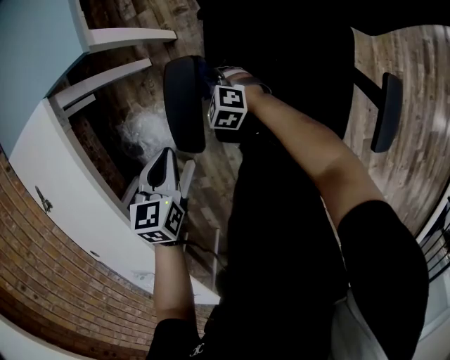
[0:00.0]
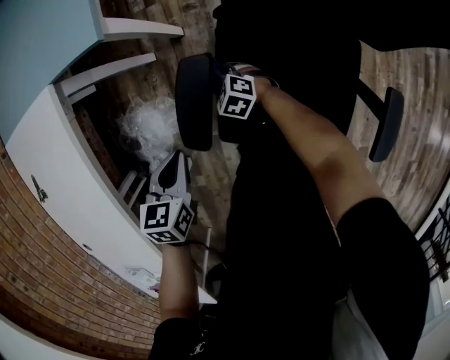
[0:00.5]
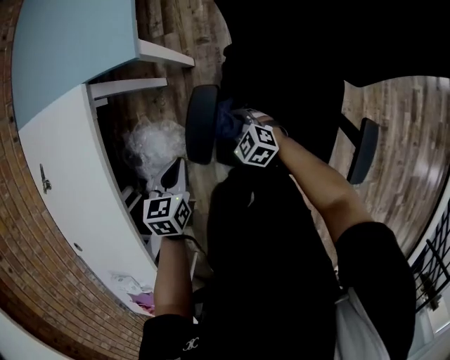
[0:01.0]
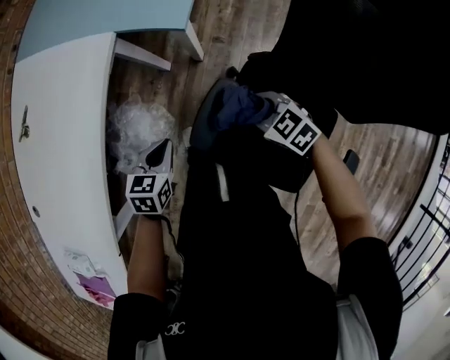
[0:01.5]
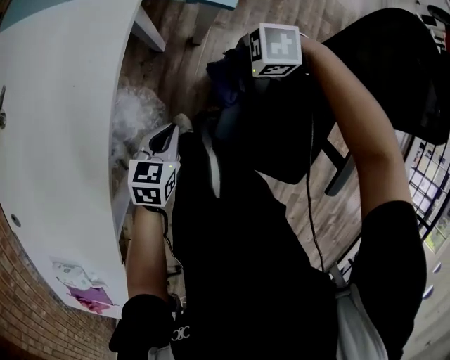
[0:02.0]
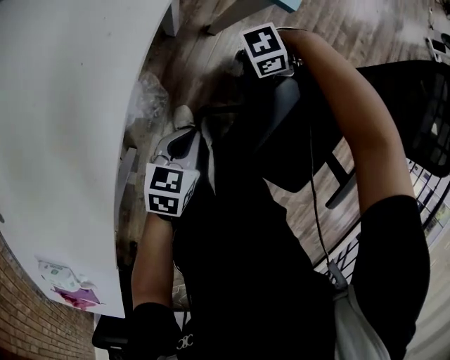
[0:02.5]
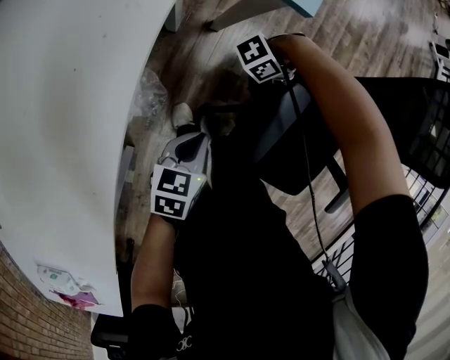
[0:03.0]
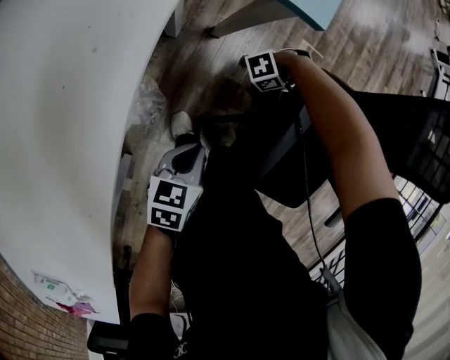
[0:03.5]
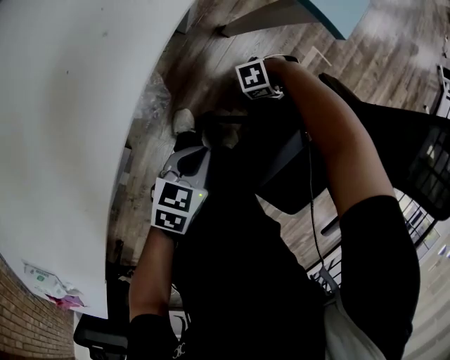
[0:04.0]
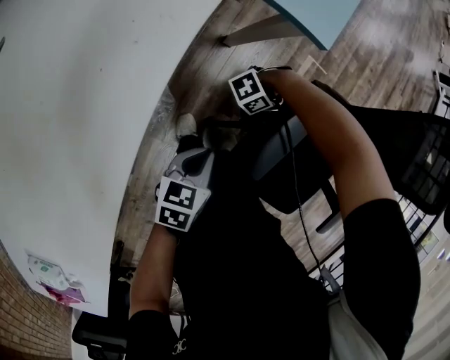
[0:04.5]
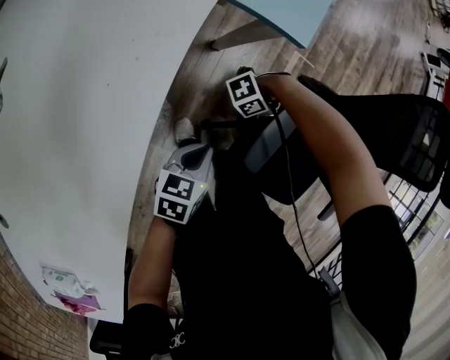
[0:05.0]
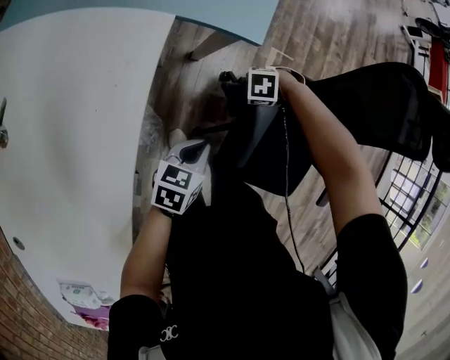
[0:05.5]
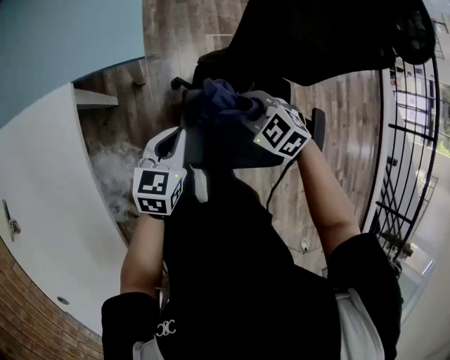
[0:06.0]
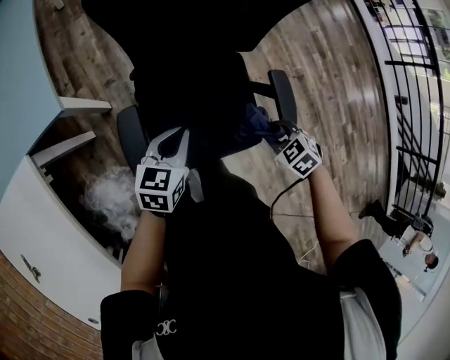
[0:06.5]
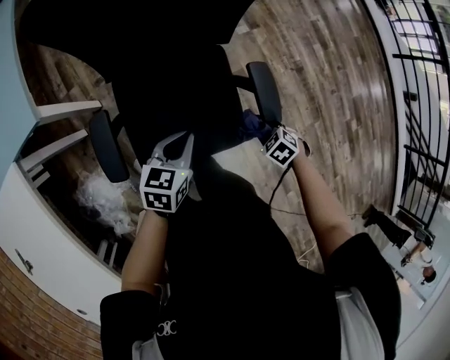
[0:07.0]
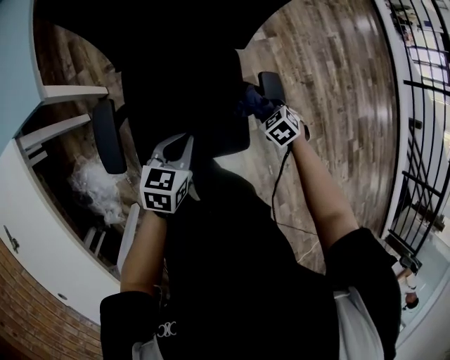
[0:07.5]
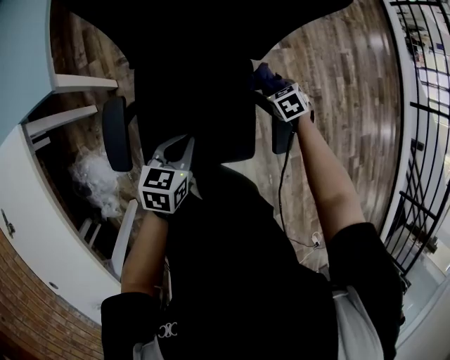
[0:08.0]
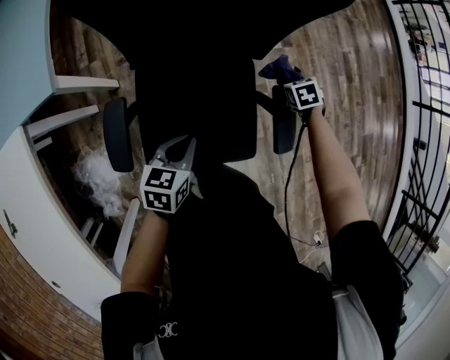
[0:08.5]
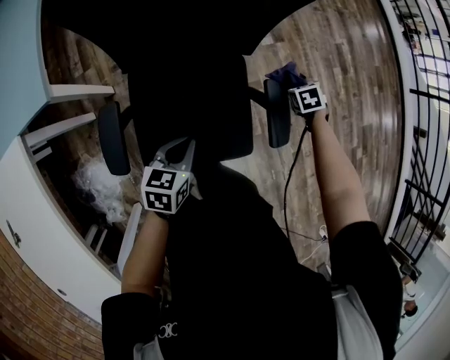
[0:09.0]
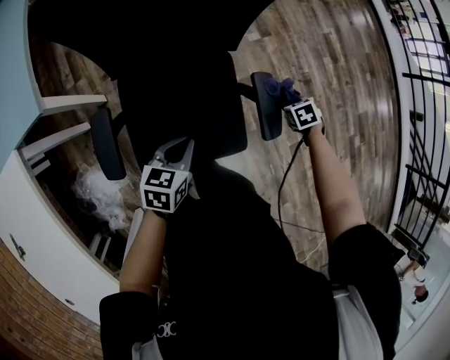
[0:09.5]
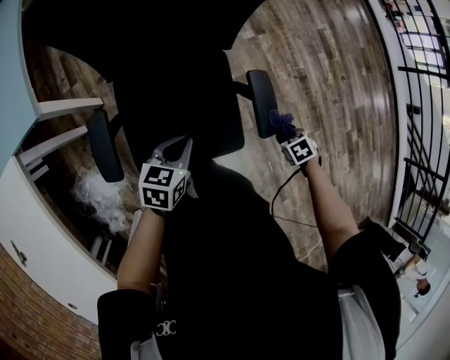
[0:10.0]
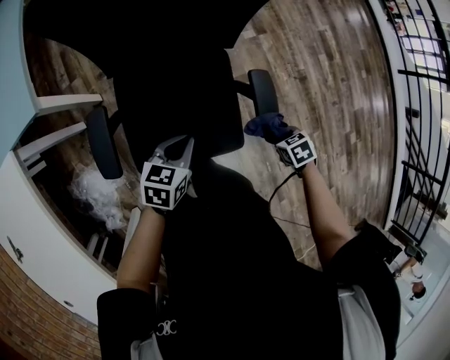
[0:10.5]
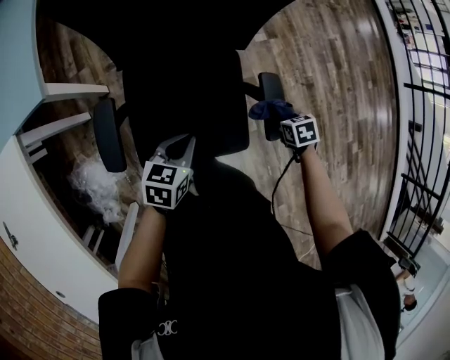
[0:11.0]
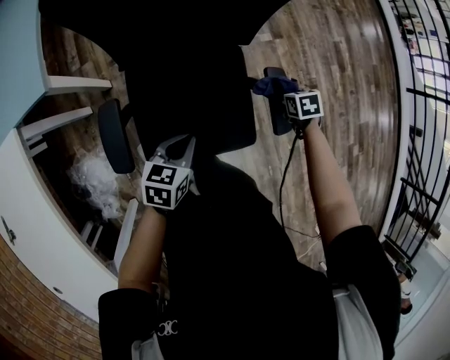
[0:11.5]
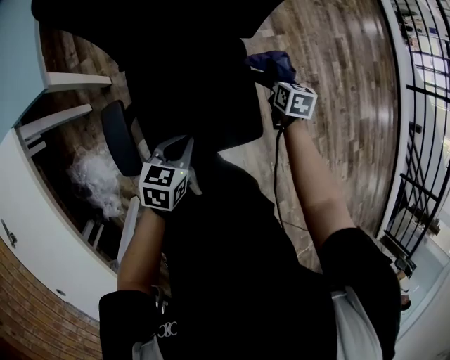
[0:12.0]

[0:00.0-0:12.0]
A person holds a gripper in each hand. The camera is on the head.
0:00.0 to 0:02.0: The left gripper moves roughly 15 cm; the right gripper moves upward, some 20 cm, and changes its angle by about 60 degrees.
0:02.0 to 0:04.0: The right gripper heads downward, covering about 30 cm, and rotates approximately 40 degrees; the left gripper travels downward by about 10 cm.
0:04.0 to 0:06.0: The left gripper shifts some 20 cm upward, and rotates about 30 degrees. The right gripper moves upward, some 40 cm, and turns by roughly 90 degrees.
0:06.0 to 0:08.0: The left gripper ends up about 30 cm from where it was. Meanwhile the right gripper moves approximately 50 cm, and changes its angle by about 40 degrees.
0:08.0 to 0:10.0: The right gripper ends up some 30 cm from where it was, and changes its angle by about 30 degrees.
0:10.0 to 0:12.0: The left gripper shifts by approximately 5 cm; the right gripper shifts by approximately 25 cm, and tips its fingers upward by some 30 degrees.

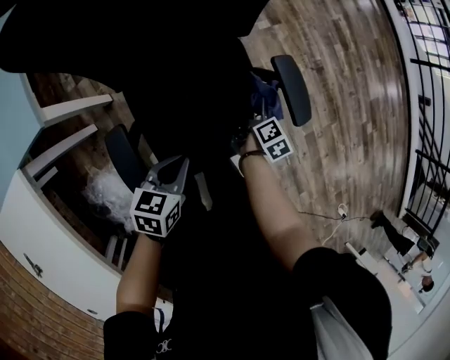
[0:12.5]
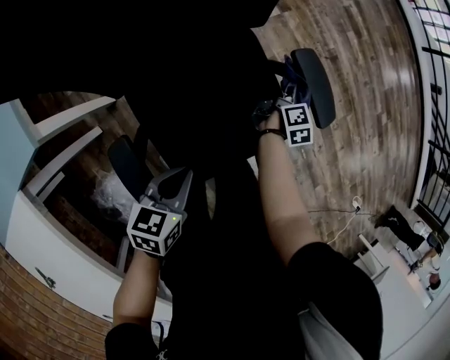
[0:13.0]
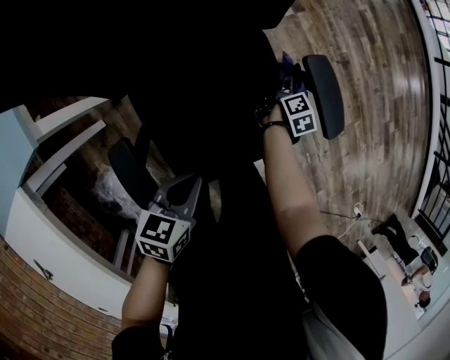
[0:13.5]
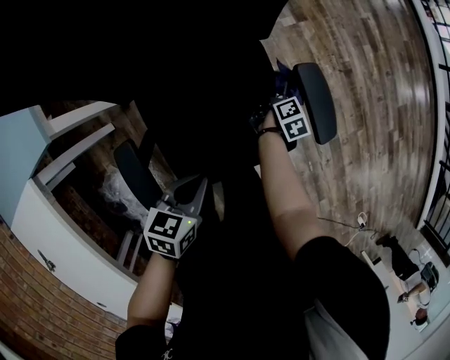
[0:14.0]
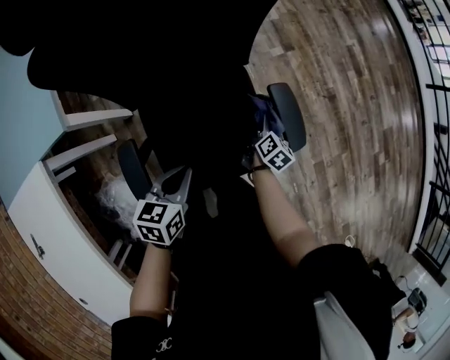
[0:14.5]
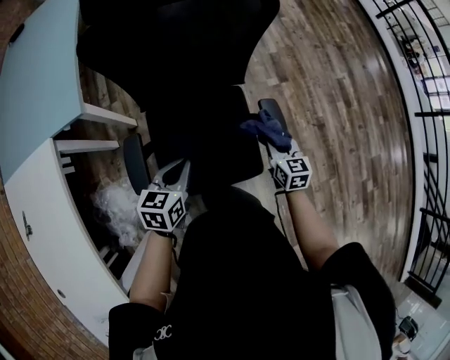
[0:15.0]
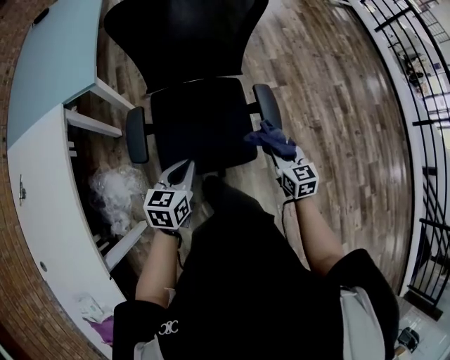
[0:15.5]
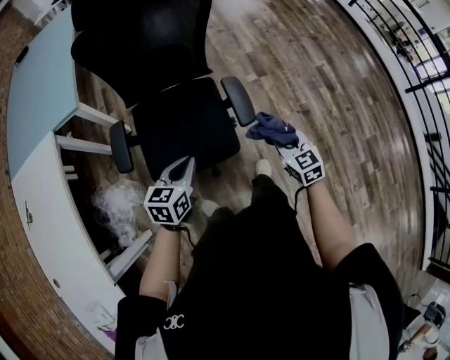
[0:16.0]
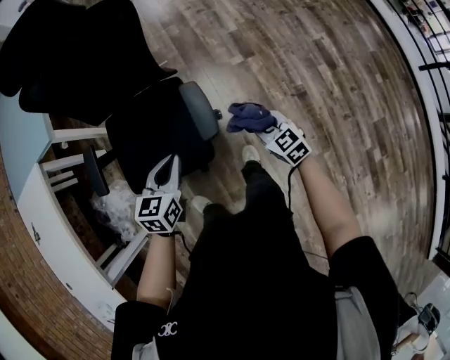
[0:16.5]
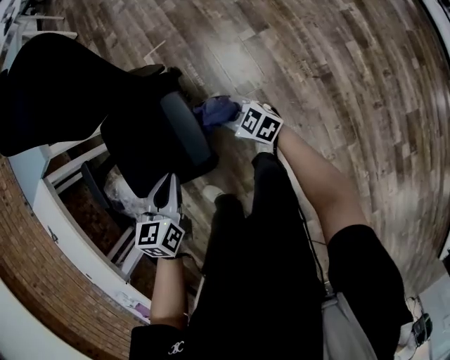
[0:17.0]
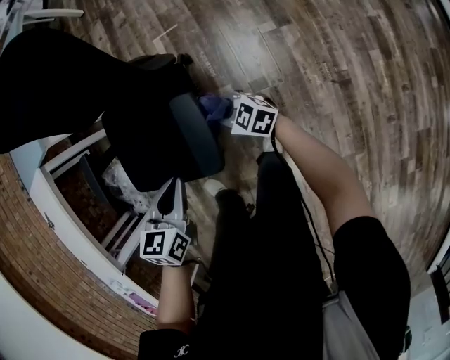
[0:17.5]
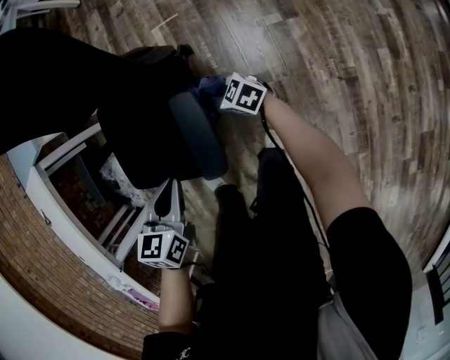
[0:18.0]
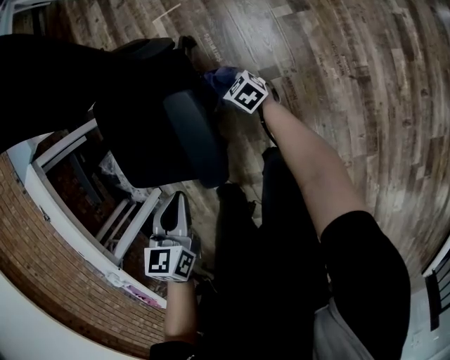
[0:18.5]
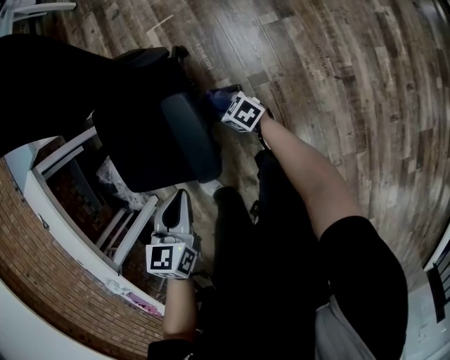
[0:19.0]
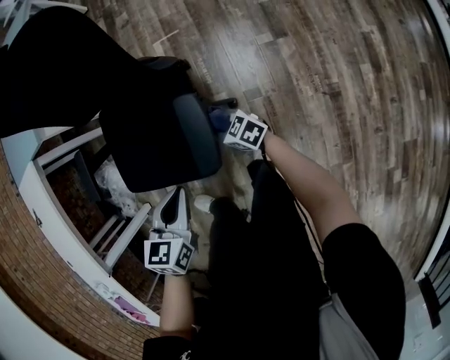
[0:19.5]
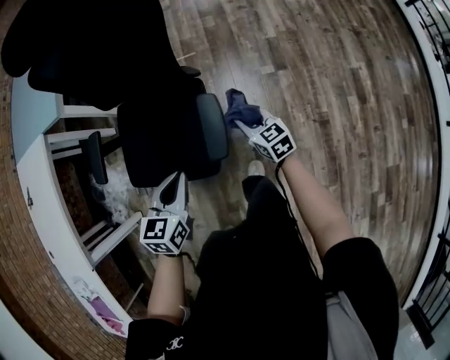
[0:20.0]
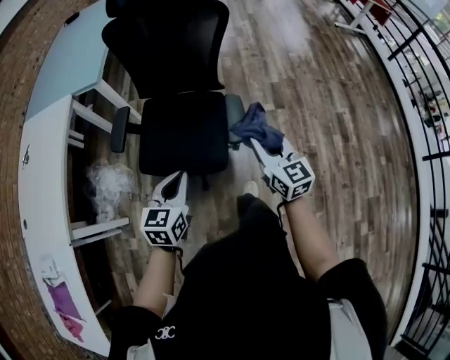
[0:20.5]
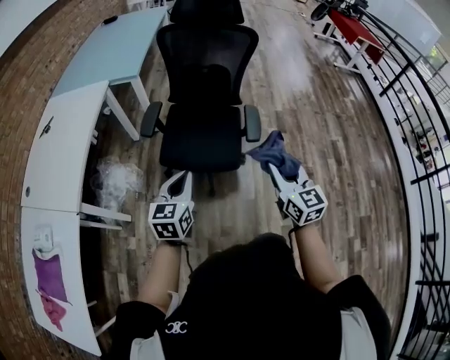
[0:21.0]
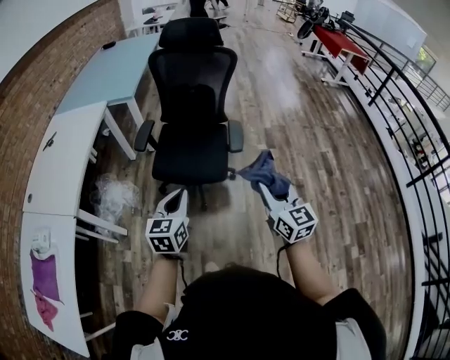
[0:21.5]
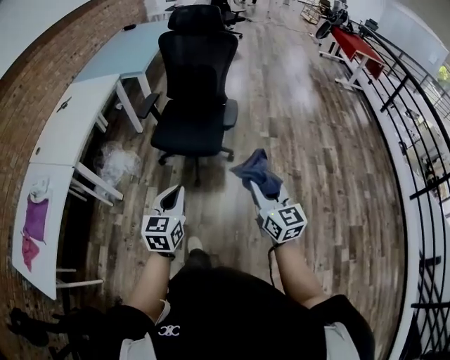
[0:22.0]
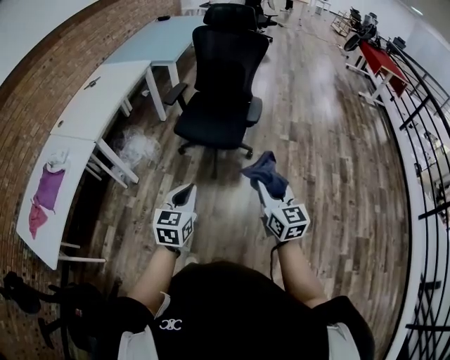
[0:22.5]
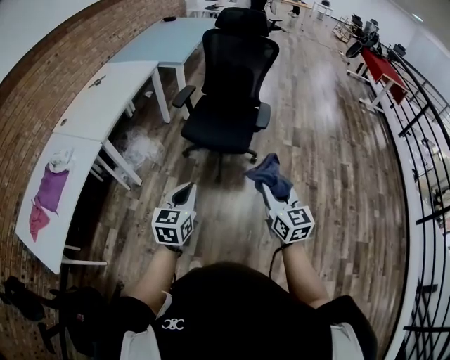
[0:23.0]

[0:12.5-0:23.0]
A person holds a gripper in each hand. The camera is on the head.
0:12.5 to 0:14.5: The right gripper moves some 10 cm downward and comes back. Meanwhile the left gripper goes about 5 cm upward.
0:14.5 to 0:16.5: The left gripper moves some 30 cm, and swivels about 20 degrees; the right gripper moves about 25 cm, and twists some 70 degrees counterclockwise, seen from behind.
0:16.5 to 0:19.0: The right gripper heads downward, covering about 30 cm, and changes its angle by about 40 degrees; the left gripper travels downward by roughly 15 cm.
0:19.0 to 0:21.0: The pair of grippers is taken backward and to the left, about 40 cm. The left gripper travels upward by approximately 25 cm, and angles its fingers upward, by about 30 degrees; the right gripper goes about 60 cm upward, and angles its fingers upward, by some 30 degrees.
0:21.0 to 0:23.0: Both grippers travel together backward, approximately 30 cm.

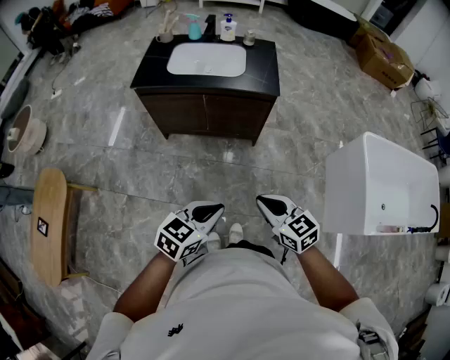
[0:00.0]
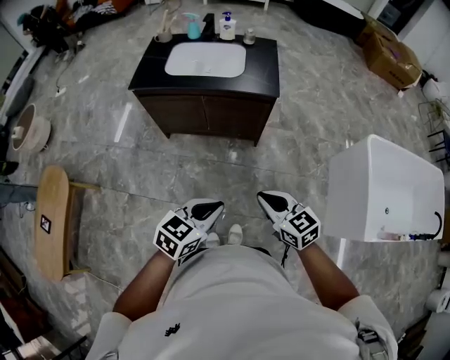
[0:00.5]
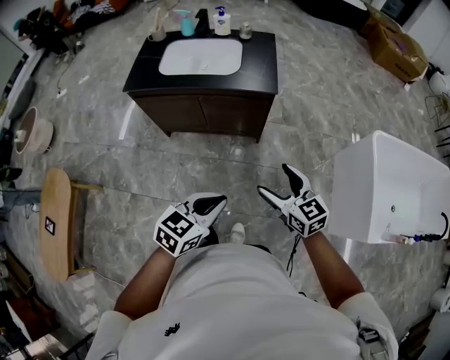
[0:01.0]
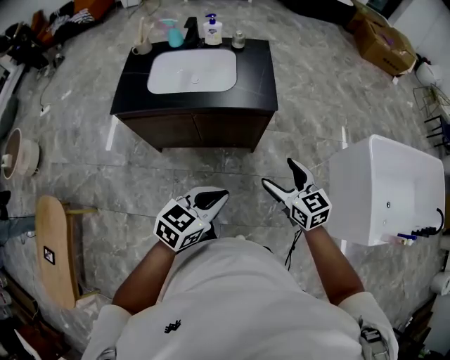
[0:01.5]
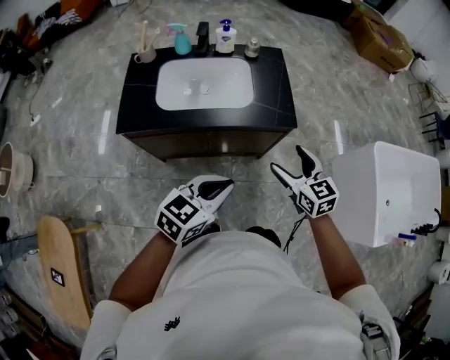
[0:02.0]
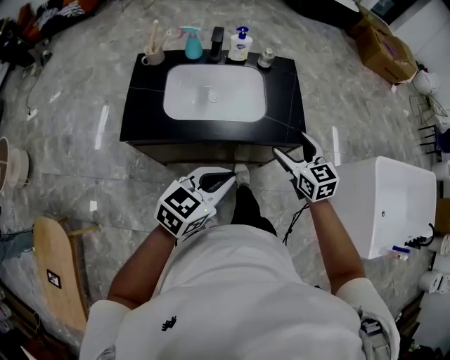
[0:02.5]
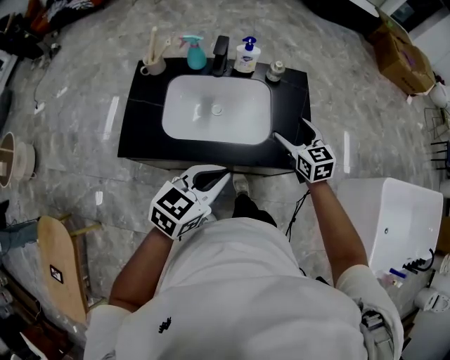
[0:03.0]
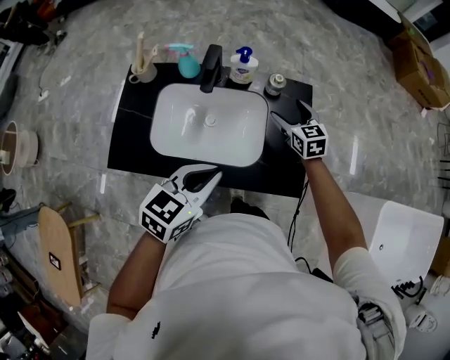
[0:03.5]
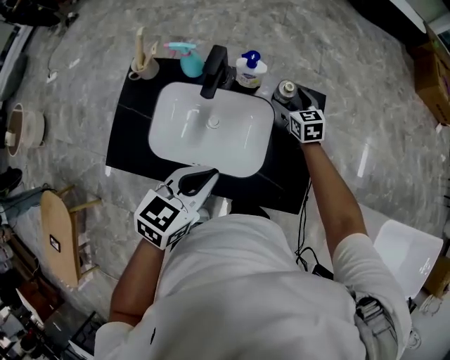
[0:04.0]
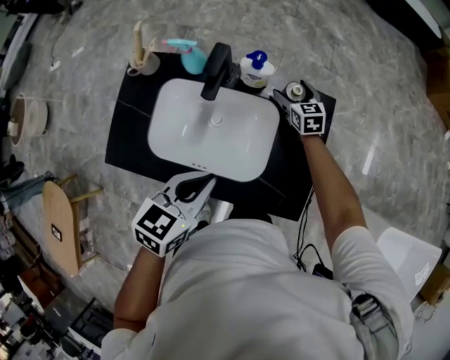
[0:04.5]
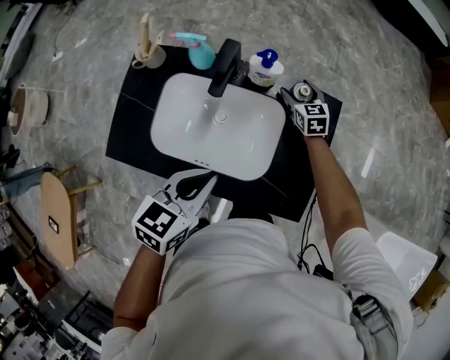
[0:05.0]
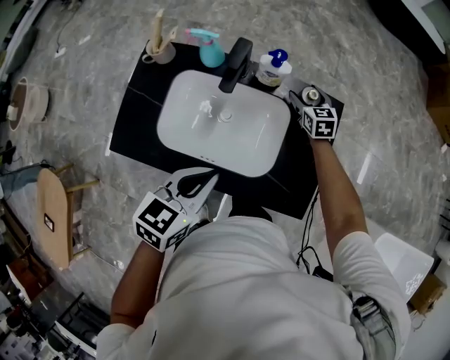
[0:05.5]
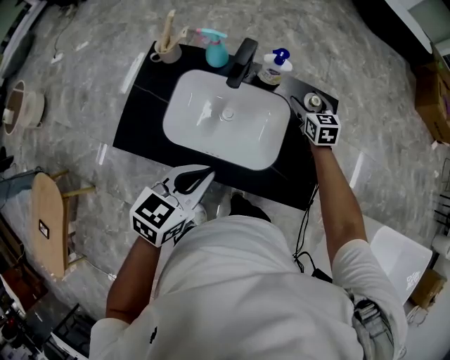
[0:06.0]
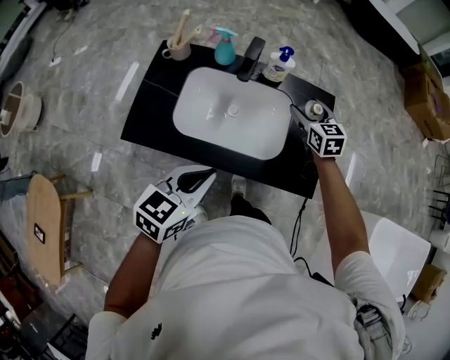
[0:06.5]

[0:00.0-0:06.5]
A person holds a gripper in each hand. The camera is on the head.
0:00.0 to 0:02.0: The grippers both shift forward by roughly 35 cm. The right gripper swivels roughly 20 degrees, and opens.
0:02.0 to 0:04.5: The left gripper travels forward by approximately 40 cm, and changes its angle by about 30 degrees. The right gripper travels forward by some 60 cm.
0:04.5 to 0:06.5: The right gripper travels backward and upward by some 20 cm. The left gripper heads backward and to the left, covering roughly 15 cm.
